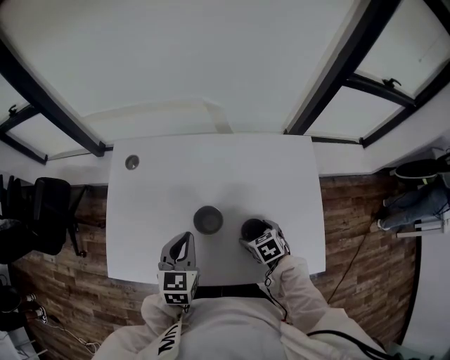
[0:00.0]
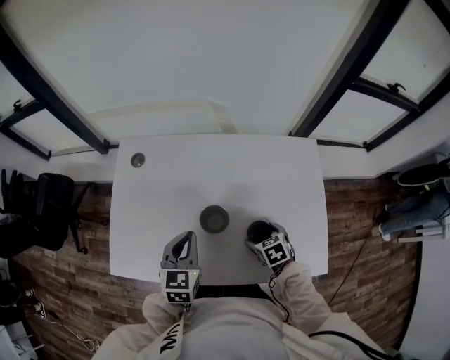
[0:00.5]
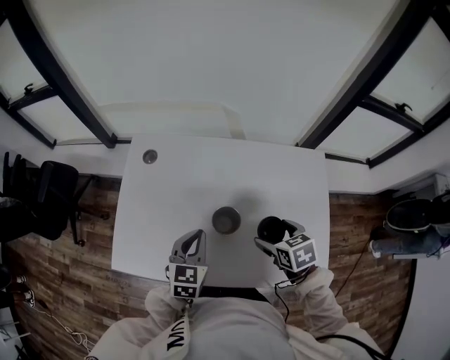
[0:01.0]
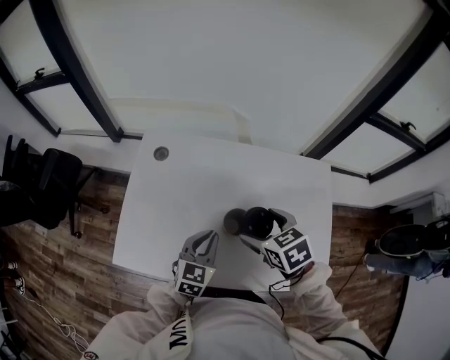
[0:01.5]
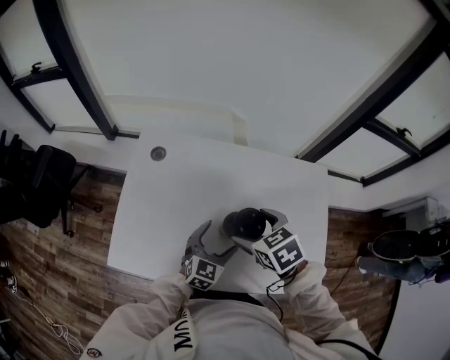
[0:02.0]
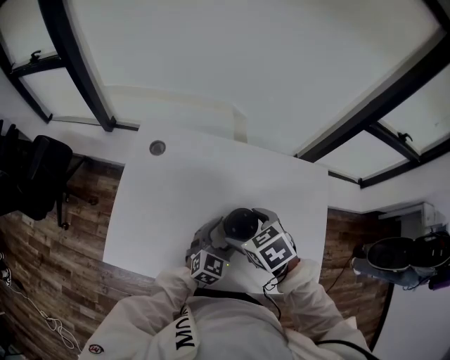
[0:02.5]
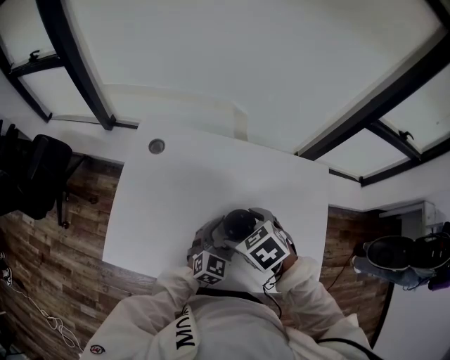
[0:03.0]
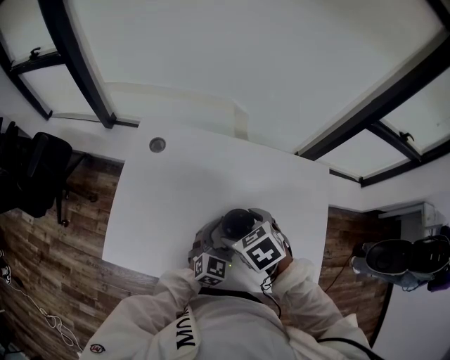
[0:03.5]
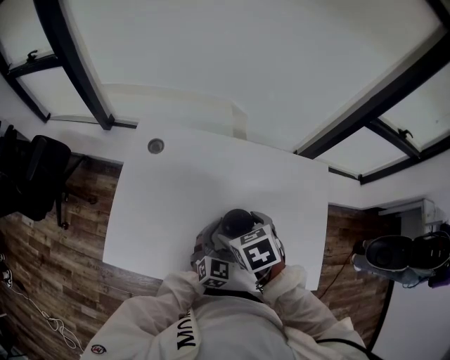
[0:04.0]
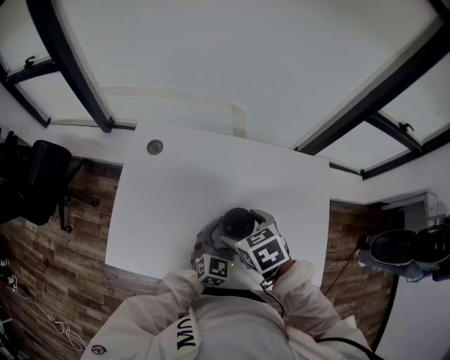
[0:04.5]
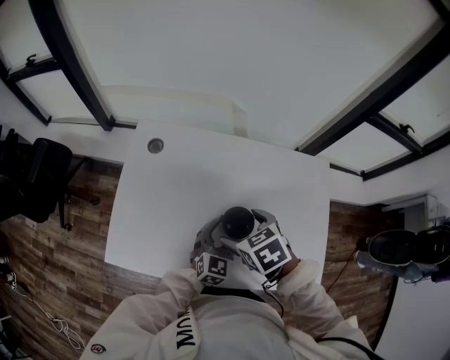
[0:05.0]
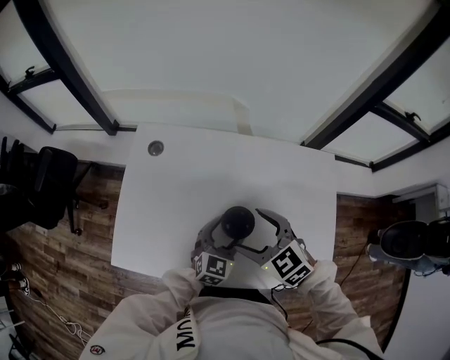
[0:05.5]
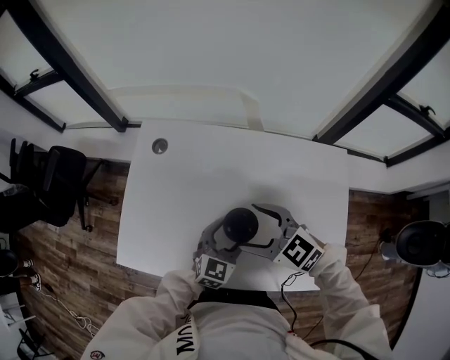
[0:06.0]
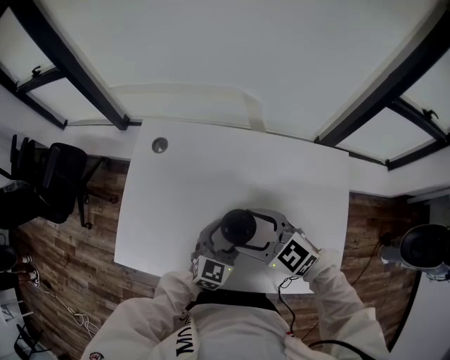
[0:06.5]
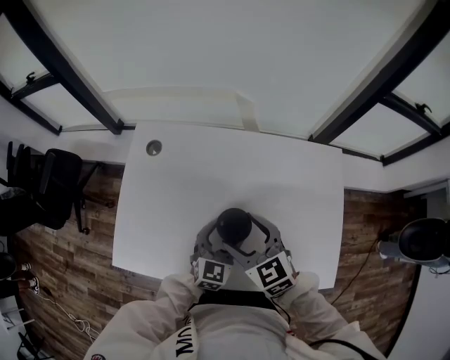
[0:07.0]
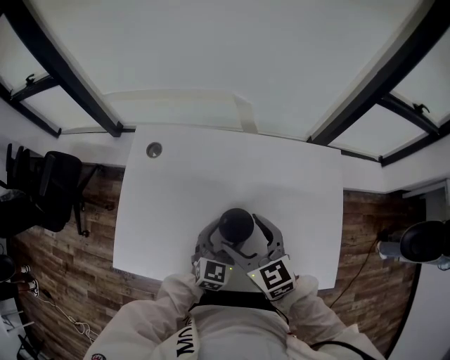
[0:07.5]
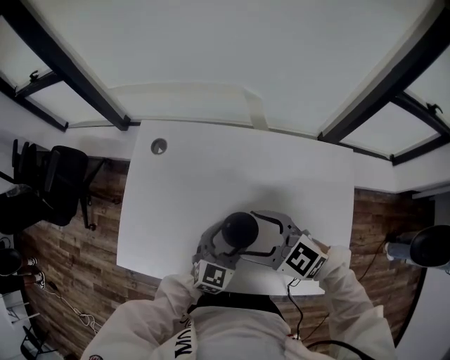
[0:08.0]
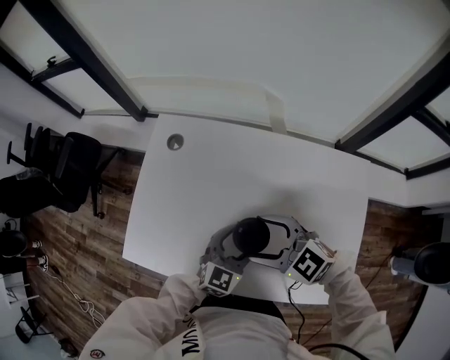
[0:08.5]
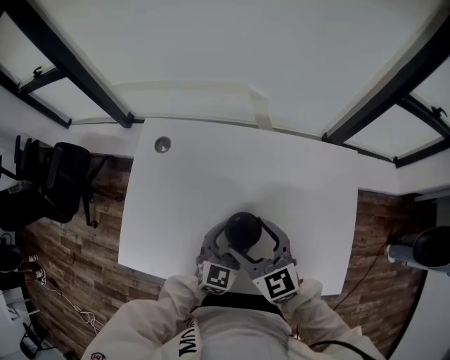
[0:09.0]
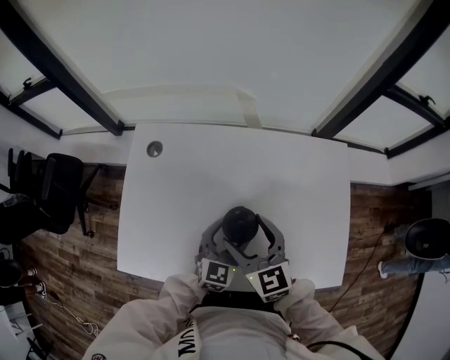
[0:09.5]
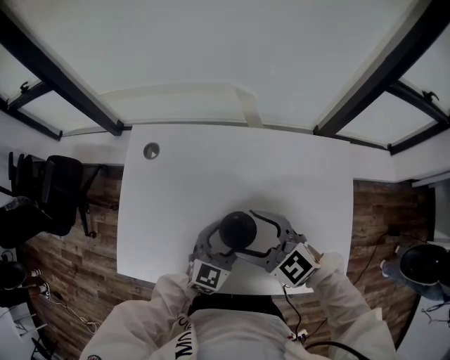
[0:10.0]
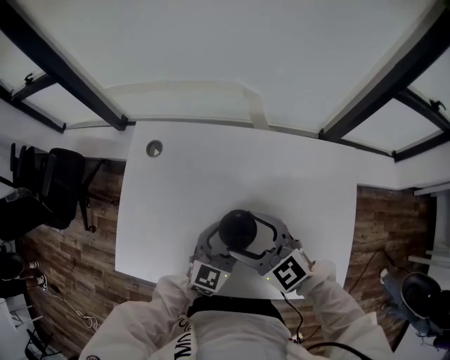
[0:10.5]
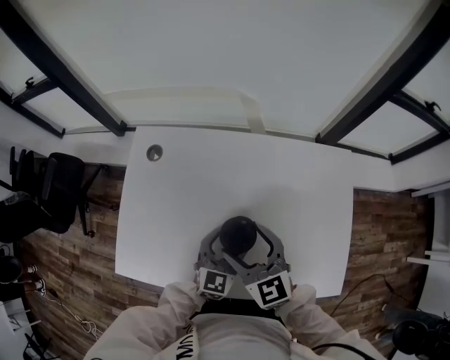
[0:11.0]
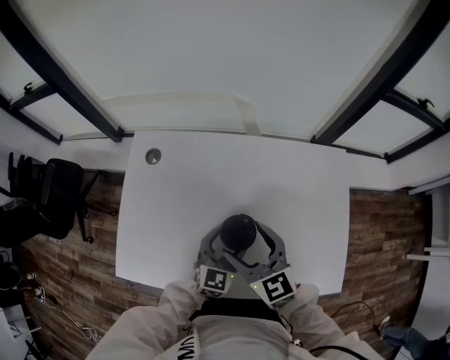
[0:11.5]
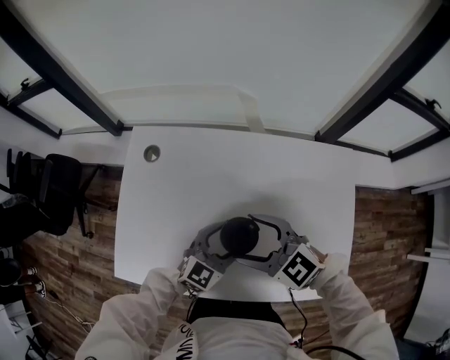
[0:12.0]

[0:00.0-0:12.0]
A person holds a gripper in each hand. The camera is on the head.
0:00.0 to 0:02.0: The left gripper shifts roughly 5 cm downward, and opens its fingers. Meanwhile the right gripper goes about 25 cm upward and to the left.
0:02.0 to 0:04.0: The grippers move only a little.
0:04.0 to 0:06.0: The right gripper tilts its fingers some 40 degrees upward.

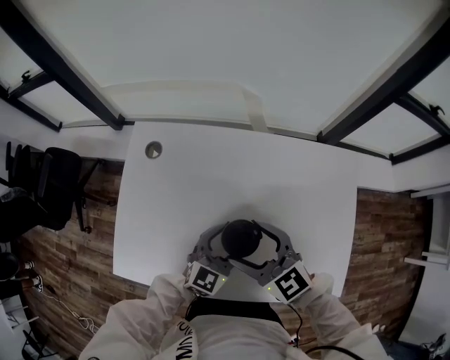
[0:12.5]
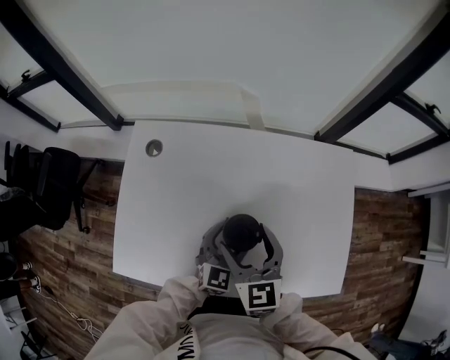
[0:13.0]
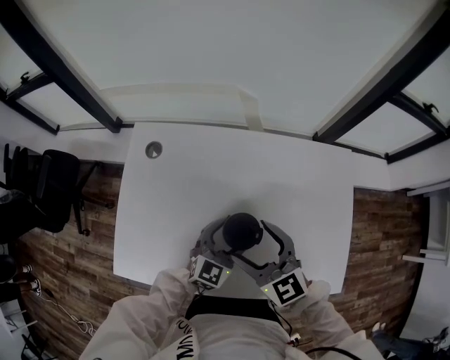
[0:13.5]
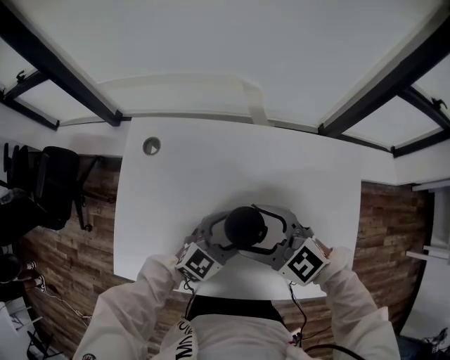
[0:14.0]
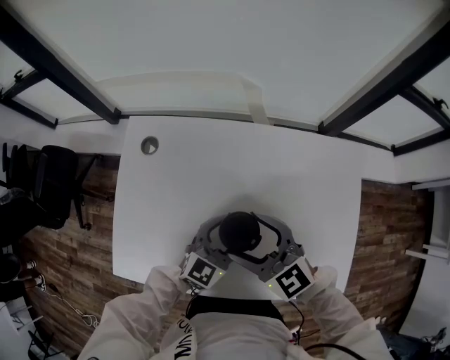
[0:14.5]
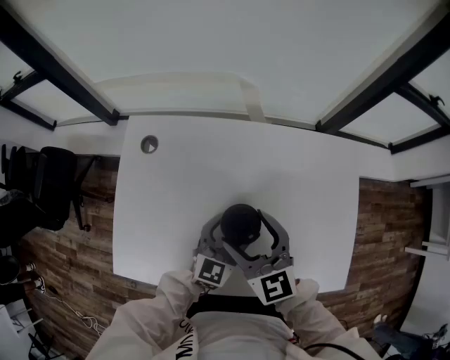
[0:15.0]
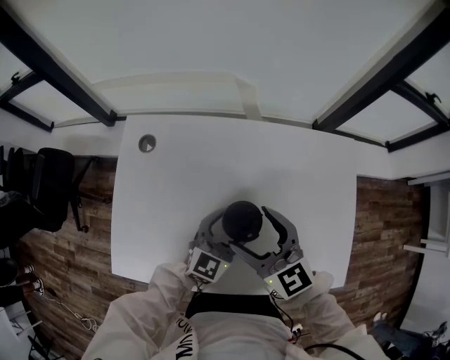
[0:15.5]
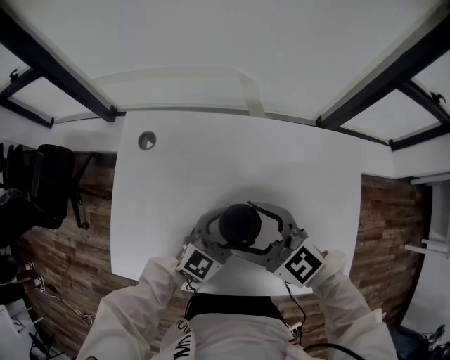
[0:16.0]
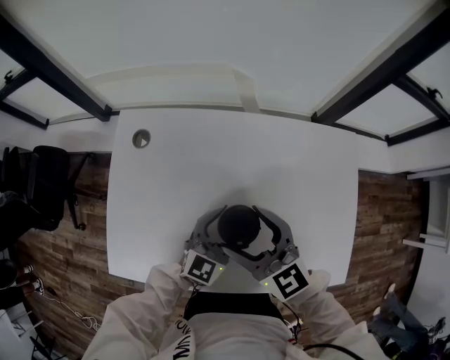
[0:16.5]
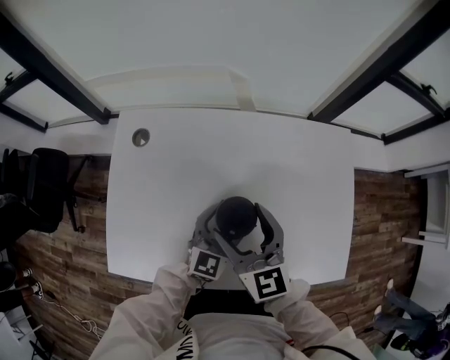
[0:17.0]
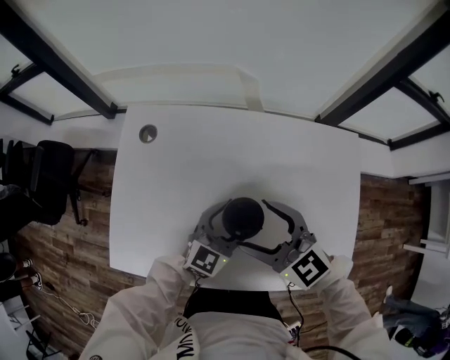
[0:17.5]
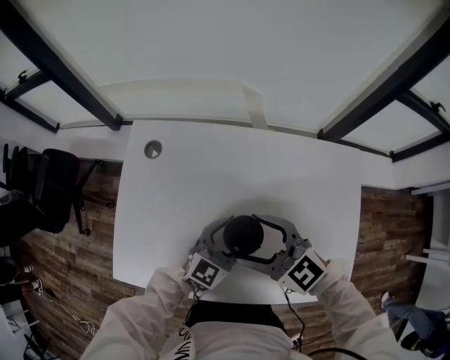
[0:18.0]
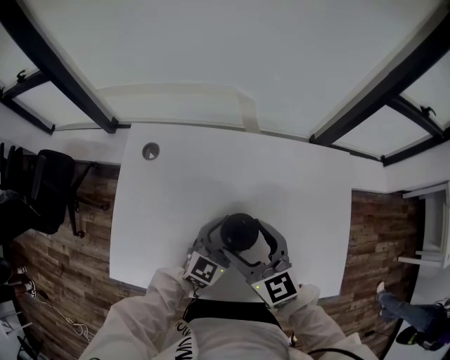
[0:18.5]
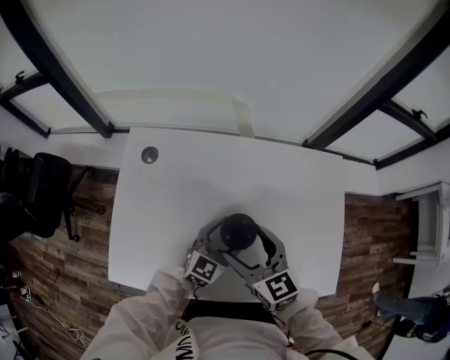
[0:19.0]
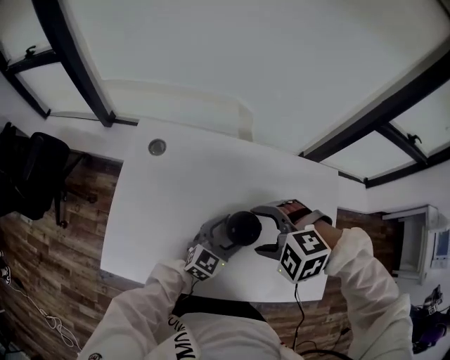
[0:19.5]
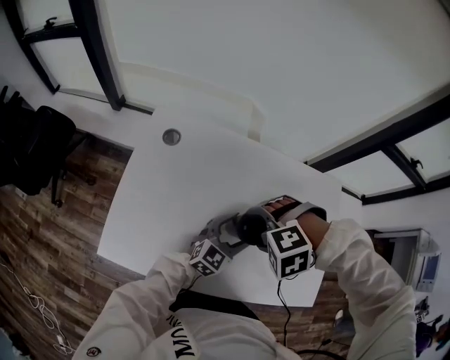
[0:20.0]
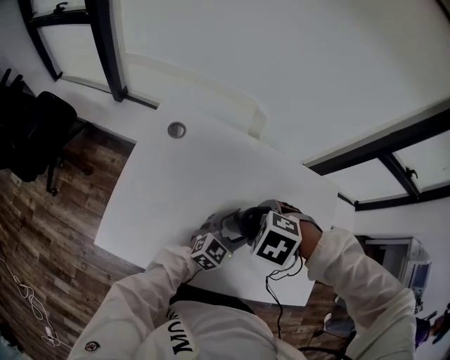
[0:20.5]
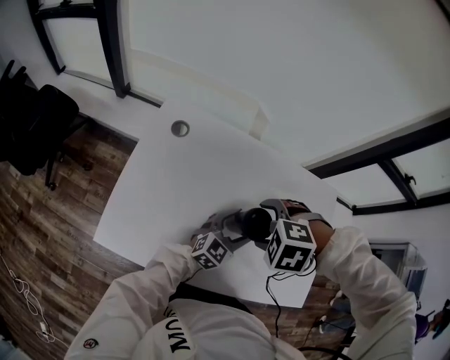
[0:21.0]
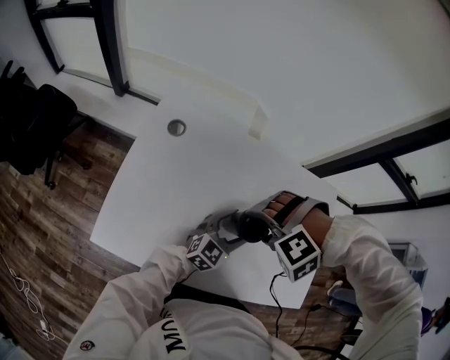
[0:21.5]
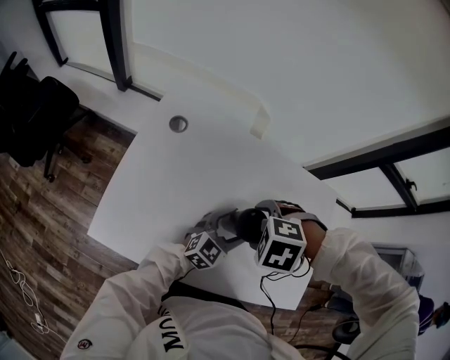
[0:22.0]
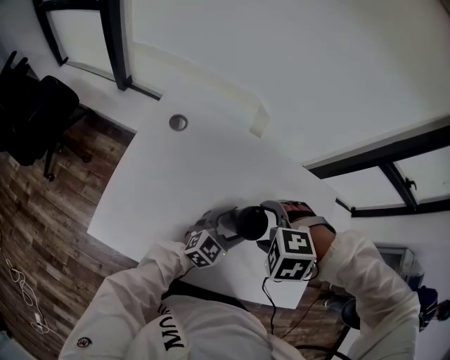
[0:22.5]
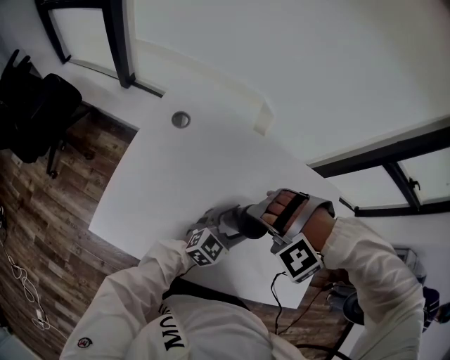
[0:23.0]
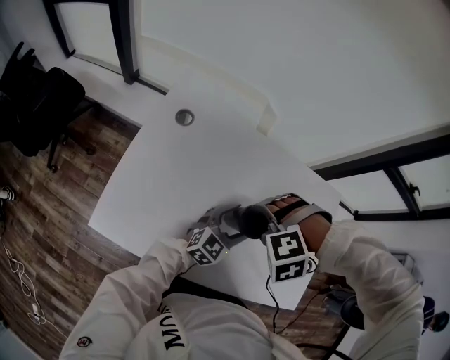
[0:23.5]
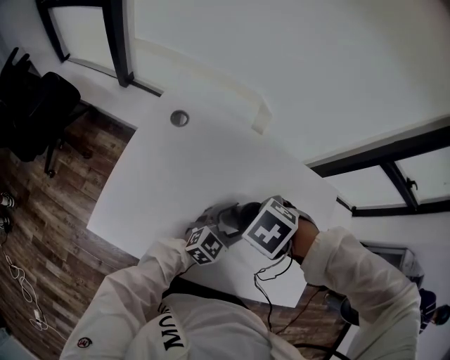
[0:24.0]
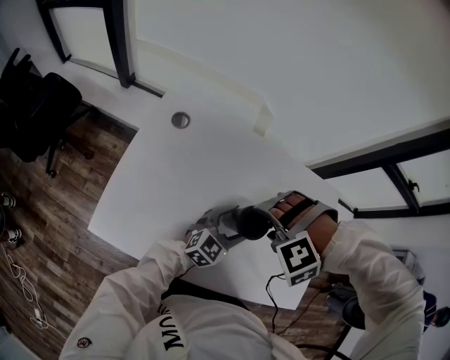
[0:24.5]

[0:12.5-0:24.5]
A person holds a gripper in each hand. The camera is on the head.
0:18.5 to 0:20.5: The right gripper tilts its fingers roughly 70 degrees downward.
0:20.5 to 0:22.5: The right gripper changes its angle by approximately 20 degrees.
0:22.5 to 0:24.5: The right gripper rotates some 40 degrees.

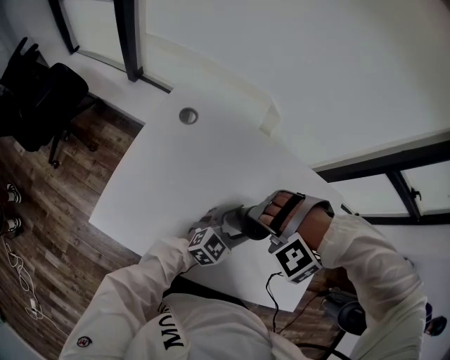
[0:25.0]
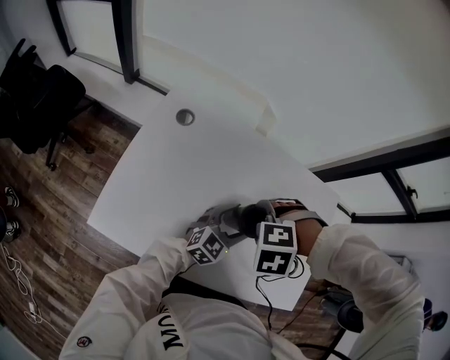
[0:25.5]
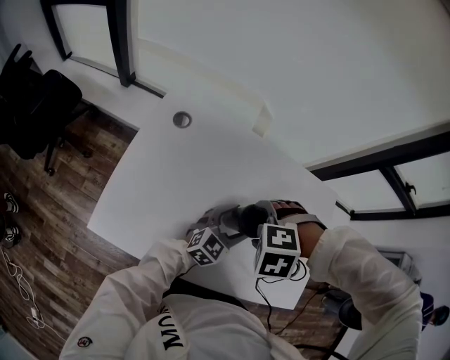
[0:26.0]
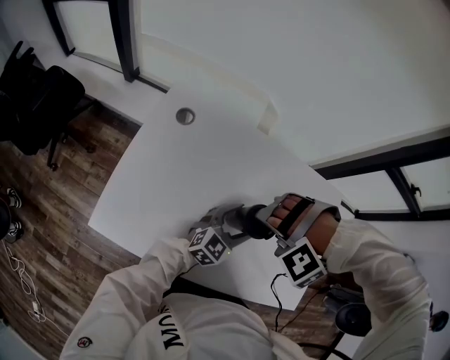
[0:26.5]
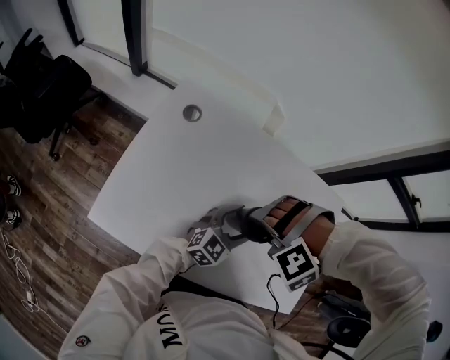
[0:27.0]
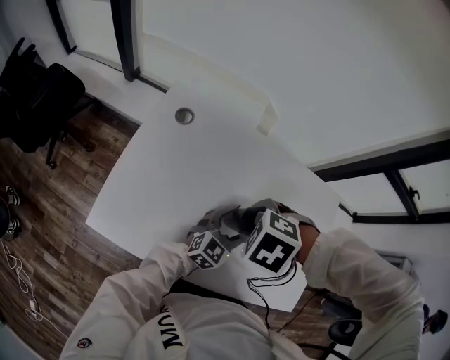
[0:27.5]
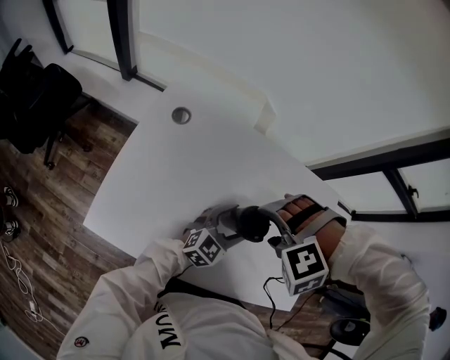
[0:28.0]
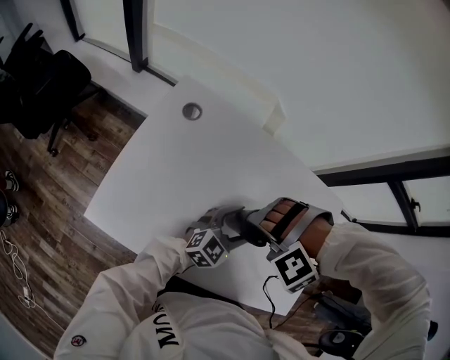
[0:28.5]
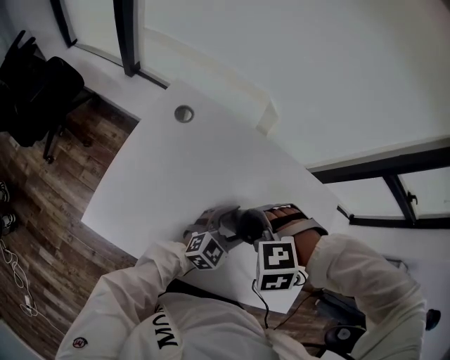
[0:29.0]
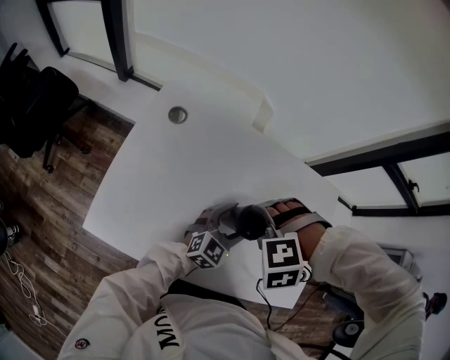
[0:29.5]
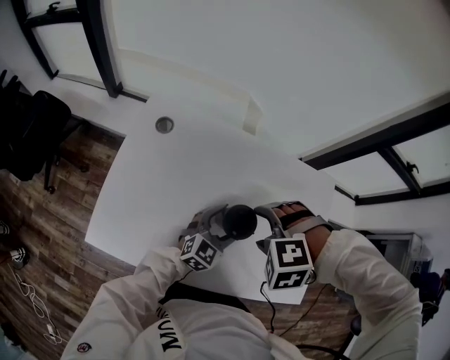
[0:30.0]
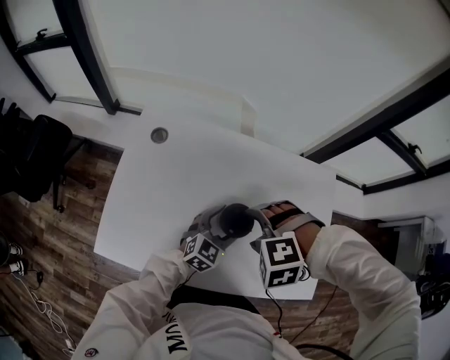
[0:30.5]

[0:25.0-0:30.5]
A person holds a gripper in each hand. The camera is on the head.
0:28.5 to 0:30.5: The right gripper rolls clockwise, seen from behind, by some 50 degrees.
